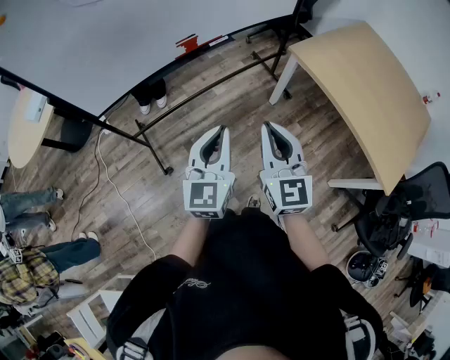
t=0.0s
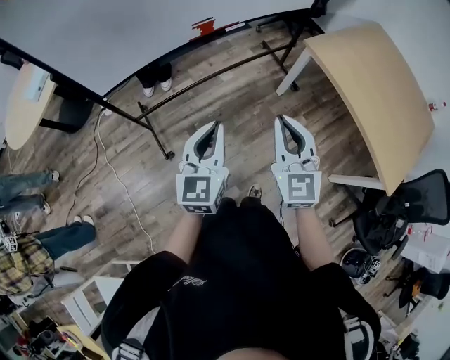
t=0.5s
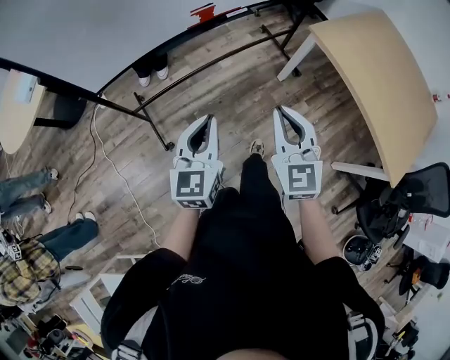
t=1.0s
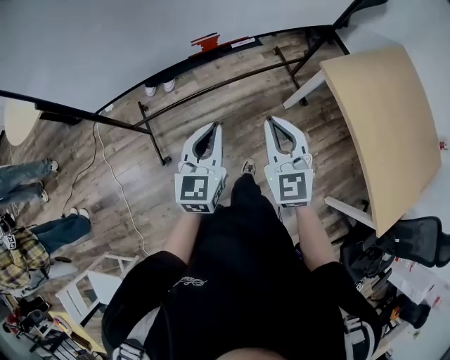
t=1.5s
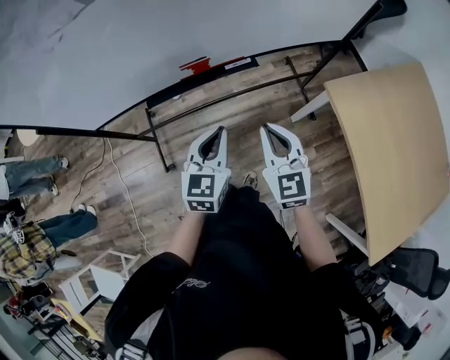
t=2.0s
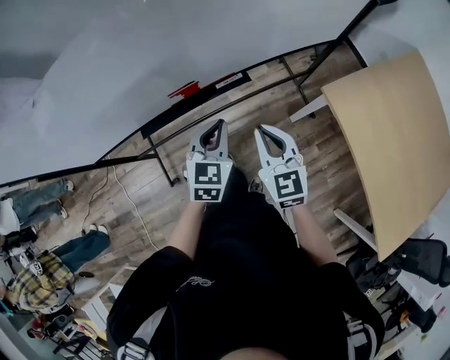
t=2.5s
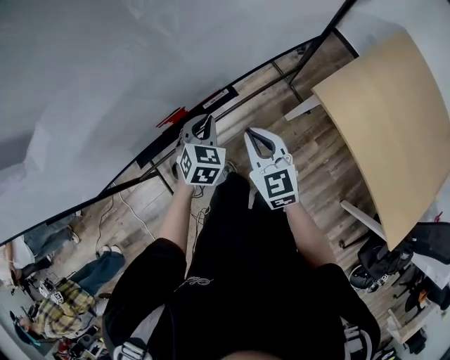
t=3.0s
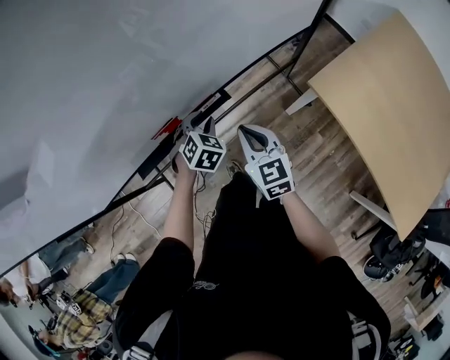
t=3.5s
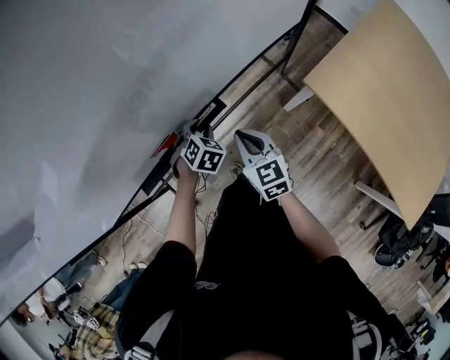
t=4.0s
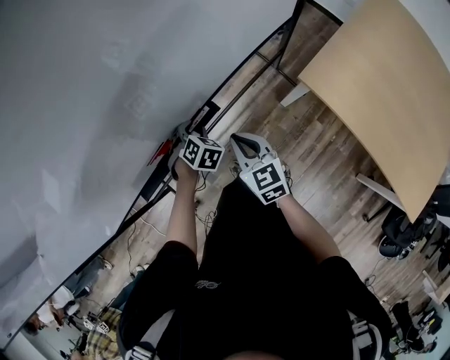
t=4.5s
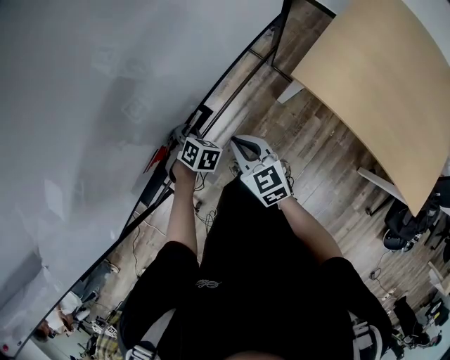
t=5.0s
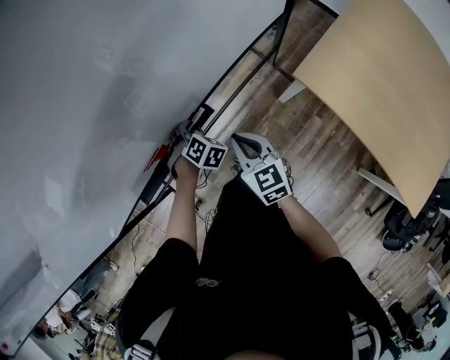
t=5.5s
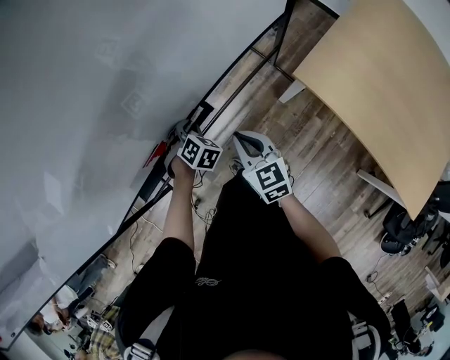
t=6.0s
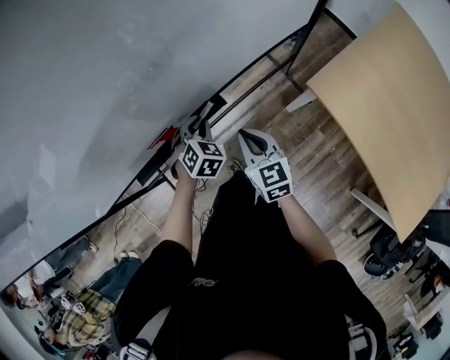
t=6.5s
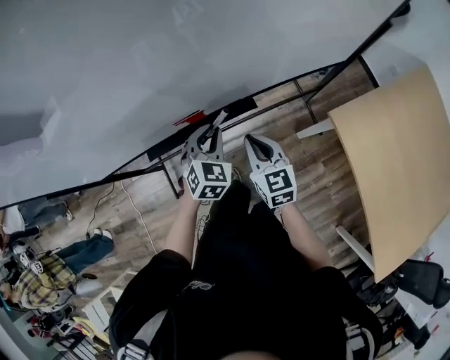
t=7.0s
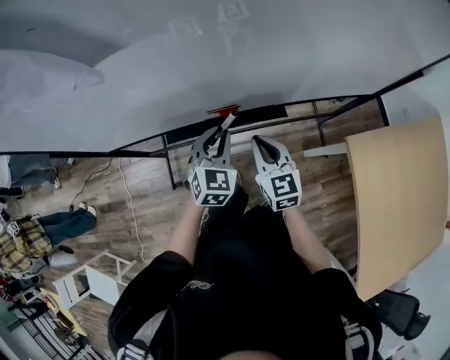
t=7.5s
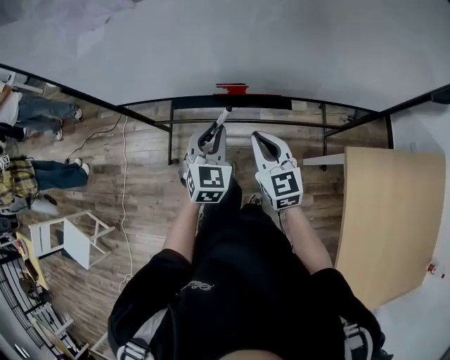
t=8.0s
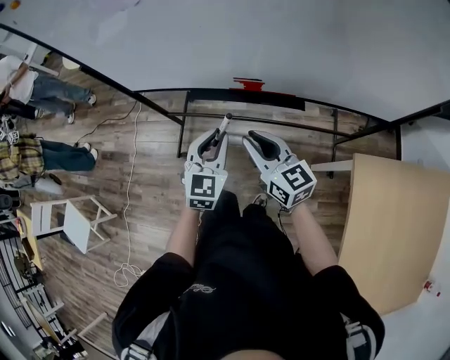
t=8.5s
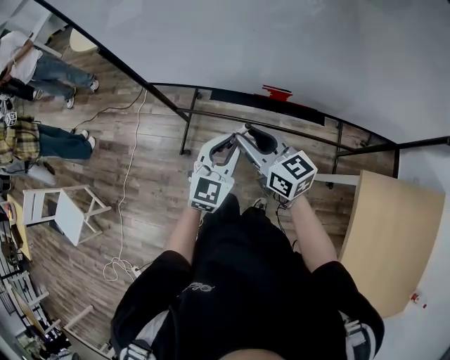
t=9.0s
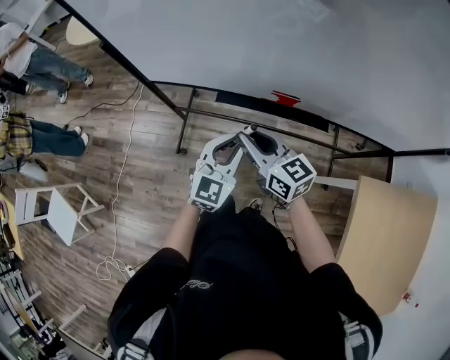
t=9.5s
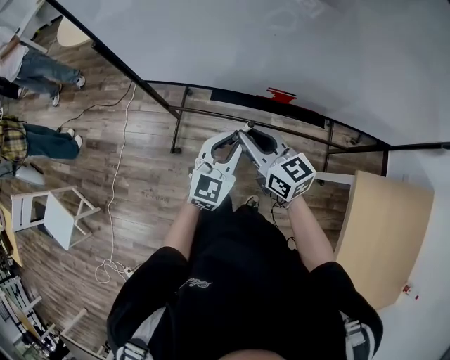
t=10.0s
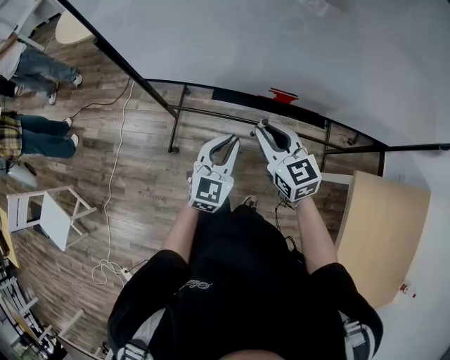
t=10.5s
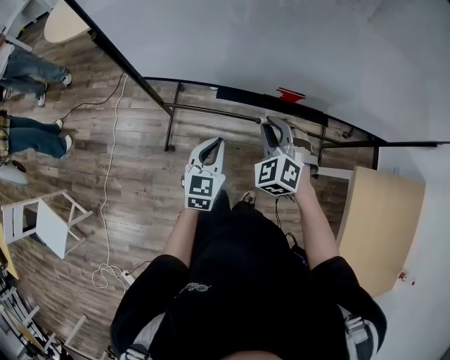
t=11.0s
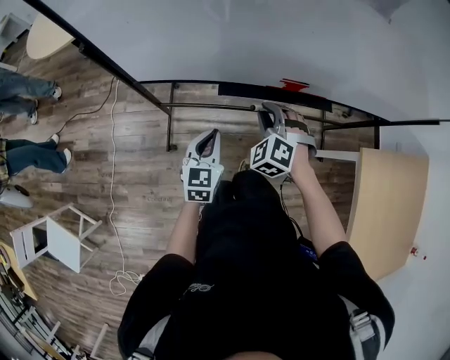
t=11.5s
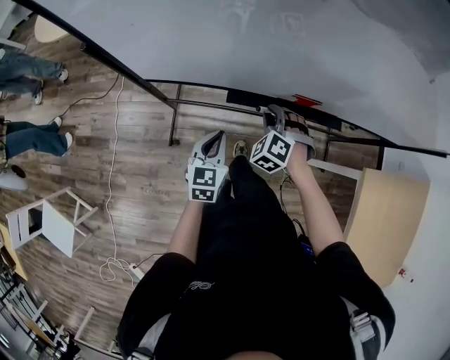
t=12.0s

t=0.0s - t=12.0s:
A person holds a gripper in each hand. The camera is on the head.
t=0.0s - t=2.0s: Both grippers move forward, approximately 30 cm. The right gripper turns by some 20 degrees. Meanwhile the left gripper rotates some 20 degrees.
t=2.0s - t=4.0s: Both grippers travel together forward and downward, about 25 cm. The left gripper points its fingers roughly 40 degrees further downward, and opens its fingers; the right gripper changes its angle by about 20 degrees.
t=4.0s - t=6.0s: The grippers stay close to where they were, moving slightly.
t=6.0s - t=8.0s: The left gripper changes place by some 30 cm, and rotates around the line of its fingers by approximately 50 degrees, counterclockwise from behind. Meanwhile the right gripper ends up approximately 20 cm from where it was, and rotates about 40 degrees.
t=8.0s - t=10.0s: The left gripper goes about 10 cm to the left, and swivels approximately 20 degrees; the right gripper moves to the left, about 20 cm, and rotates roughly 30 degrees.
t=10.0s - t=12.0s: The right gripper heads downward and forward, covering about 20 cm, and angles its fingers downward, by approximately 40 degrees. The left gripper moves downward and to the left, approximately 20 cm, and rotates approximately 20 degrees.

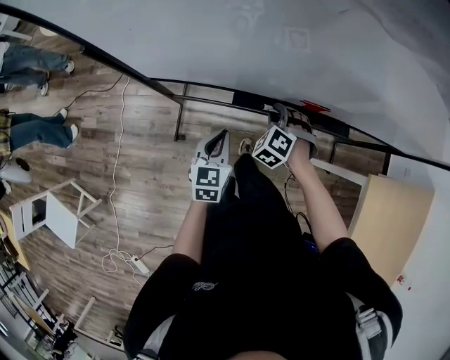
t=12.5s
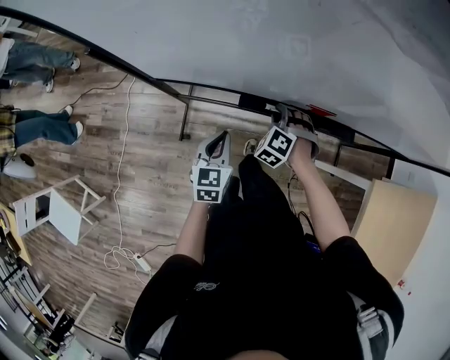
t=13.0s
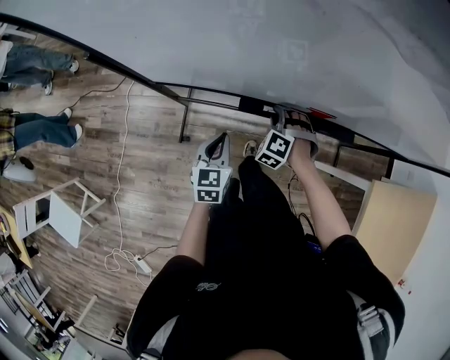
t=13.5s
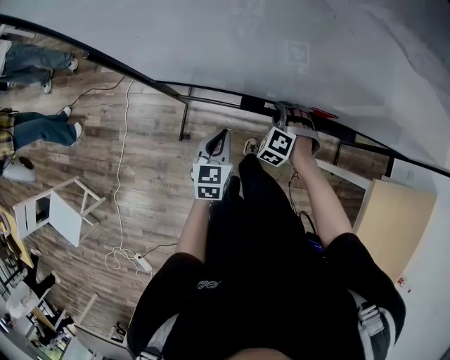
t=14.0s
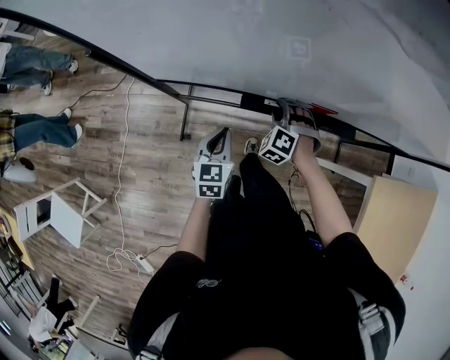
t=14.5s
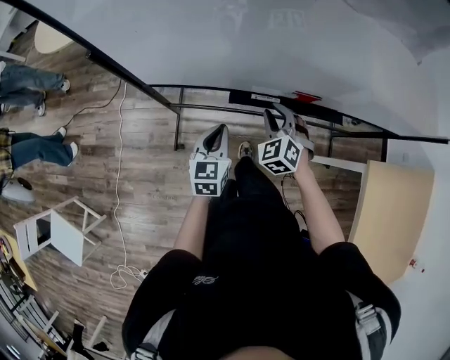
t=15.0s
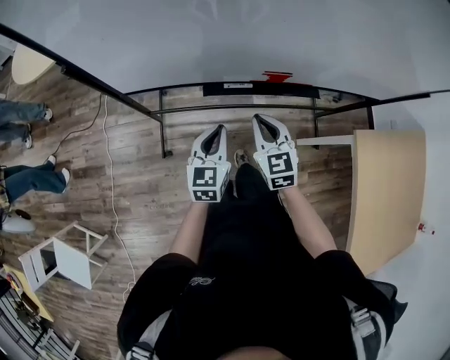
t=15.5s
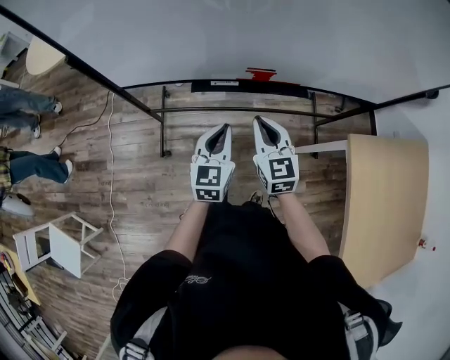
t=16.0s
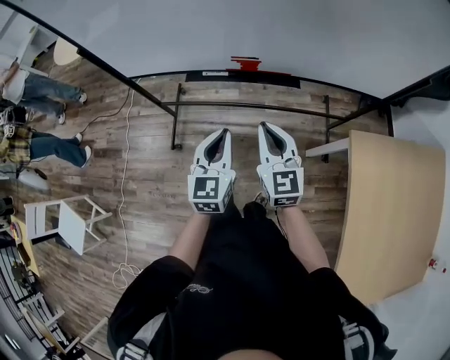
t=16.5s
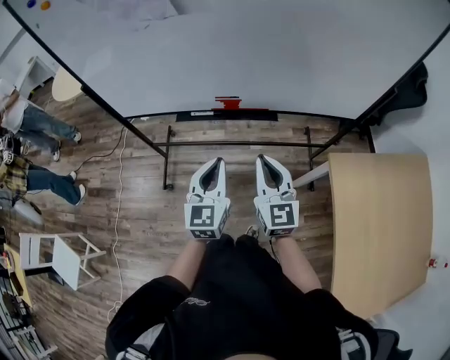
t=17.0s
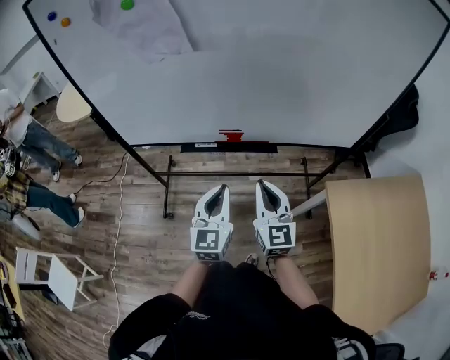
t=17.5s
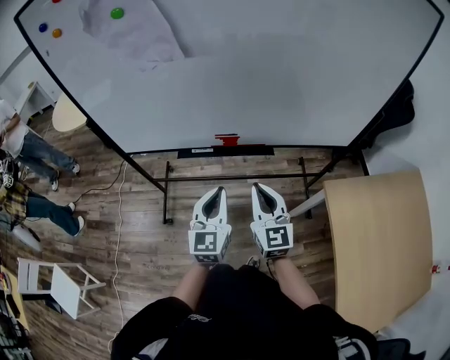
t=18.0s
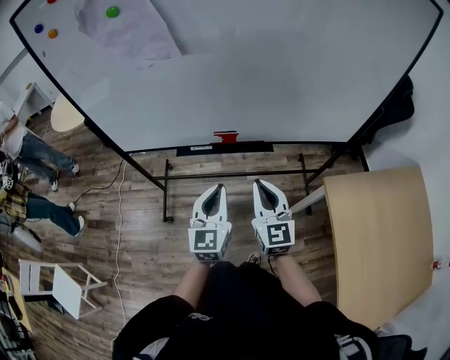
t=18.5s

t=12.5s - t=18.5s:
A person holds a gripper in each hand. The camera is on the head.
t=12.5s - t=14.5s: The grippers make only small movements.
t=14.5s - t=16.5s: The left gripper heads to the right, upward and backward, covering some 35 cm. The right gripper heads backward, upward and to the right, covering roughly 40 cm, rolls clockwise, seen from behind, by roughly 60 degrees, and closes its fingers.
t=16.5s - t=18.5s: Both grippers travel together upward, roughly 10 cm.

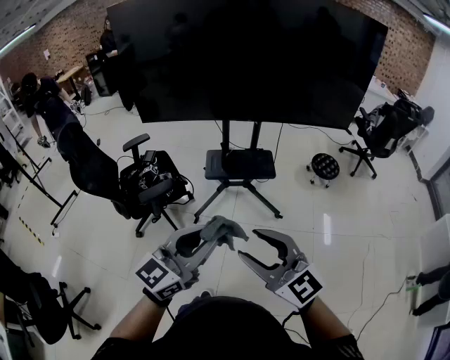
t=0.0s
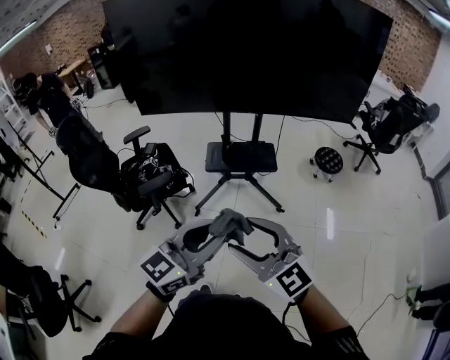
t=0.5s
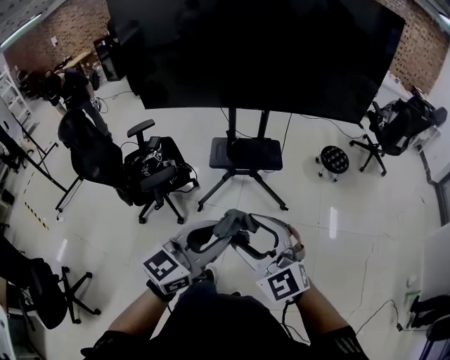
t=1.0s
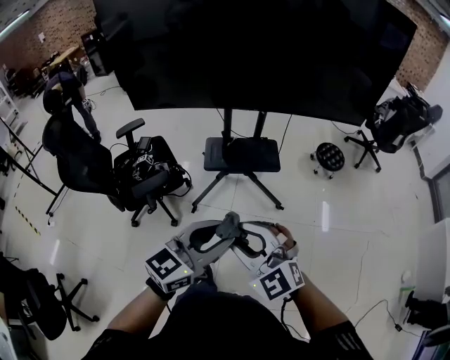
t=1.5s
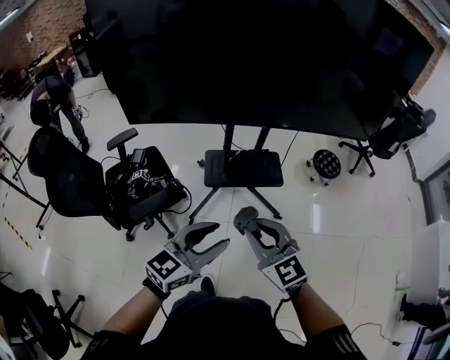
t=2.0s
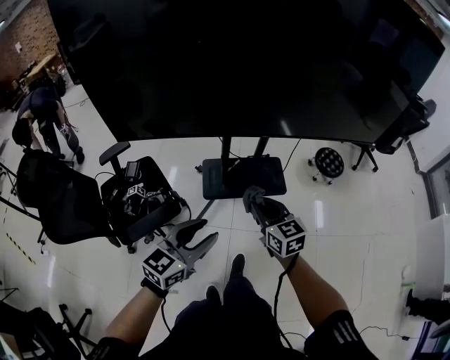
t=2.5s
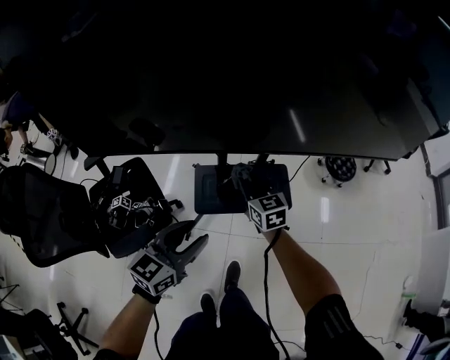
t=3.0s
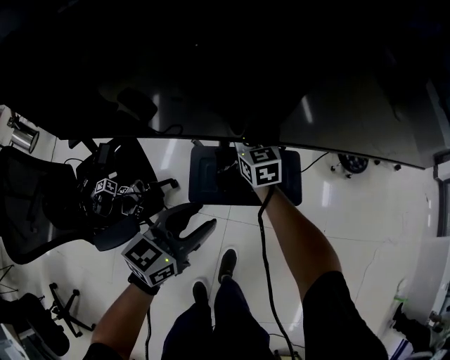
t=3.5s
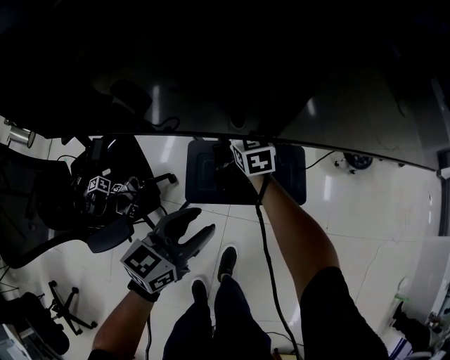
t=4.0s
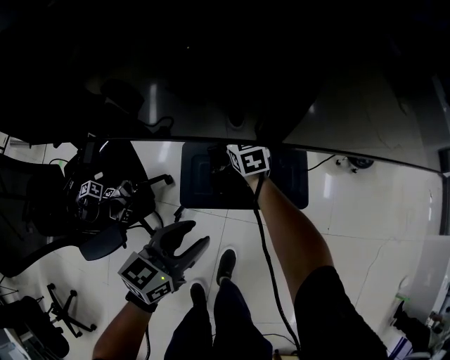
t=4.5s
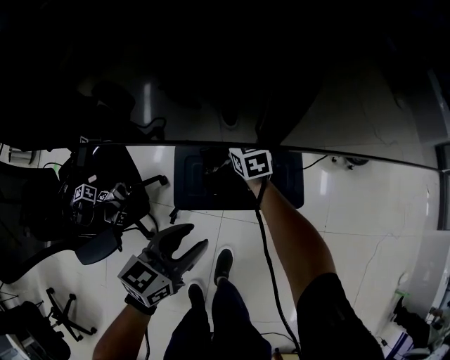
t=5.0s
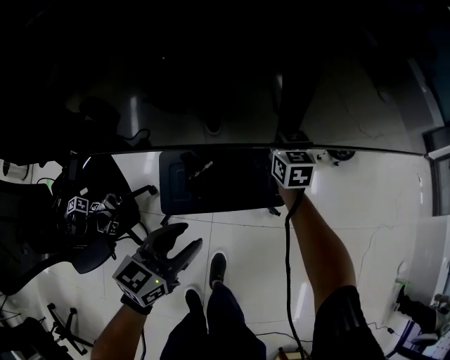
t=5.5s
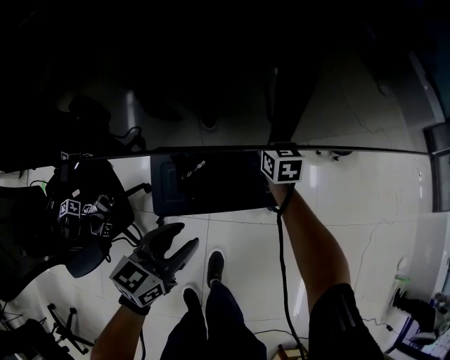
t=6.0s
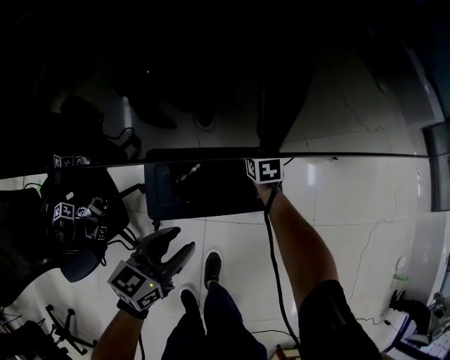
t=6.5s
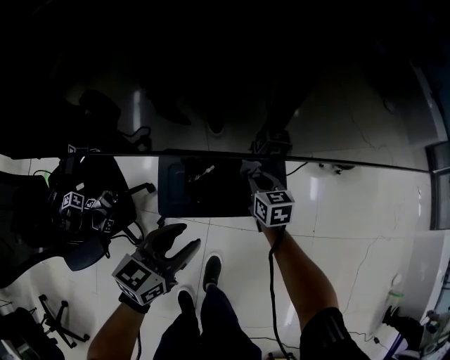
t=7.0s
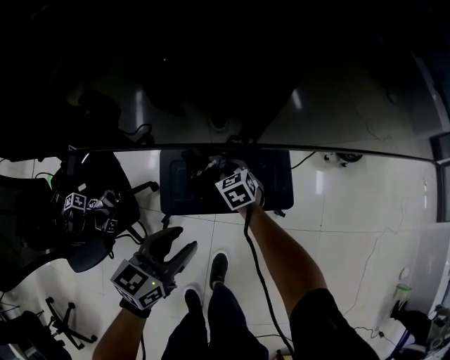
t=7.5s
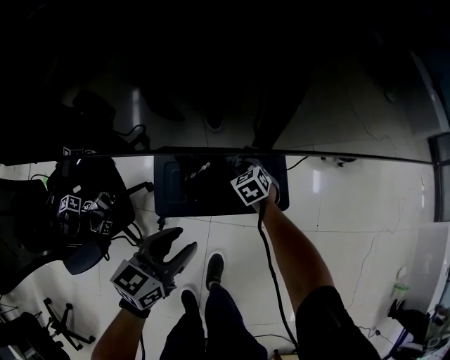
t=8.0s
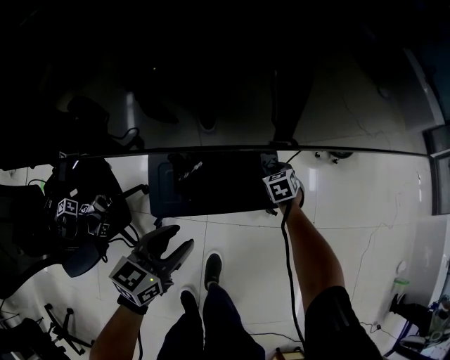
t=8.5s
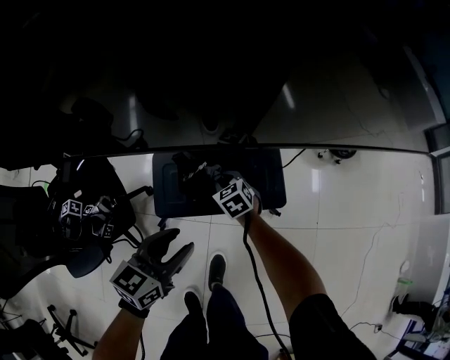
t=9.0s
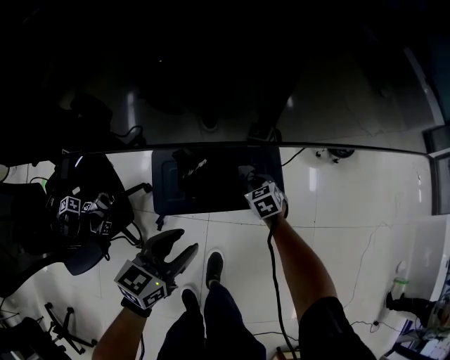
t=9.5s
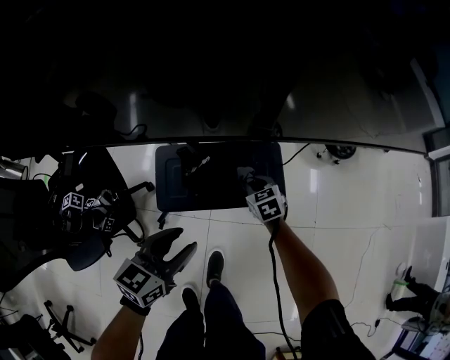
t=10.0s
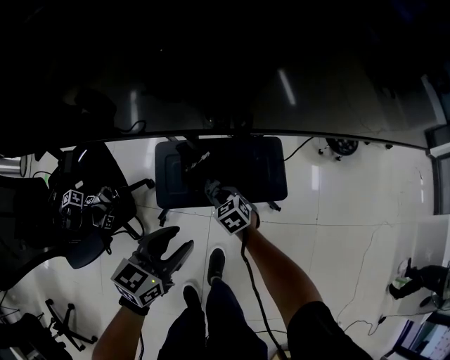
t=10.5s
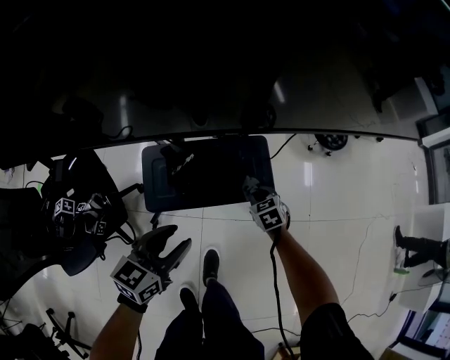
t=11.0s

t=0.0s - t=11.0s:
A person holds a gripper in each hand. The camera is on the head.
t=0.0s - t=2.0s: The left gripper is displaced forward and downward by about 20 cm. The right gripper is displaced forward by roughly 25 cm, and closes its fingers.
t=2.0s - t=3.5s: The right gripper heads forward and downward, covering about 60 cm, and turns by about 20 degrees. The left gripper shifts some 40 cm forward and downward.
t=3.5s - t=5.5s: The right gripper goes approximately 20 cm to the right, while the left gripper travels downward by roughly 10 cm.
t=5.5s - t=7.5s: The right gripper swings up and down, roughly 15 cm each way, with 2 reversals, and rotates approximately 30 degrees.
t=7.5s - t=9.0s: The right gripper travels to the right and back again, roughly 20 cm each way.
t=9.0s - t=11.0s: The right gripper goes some 15 cm to the right.
